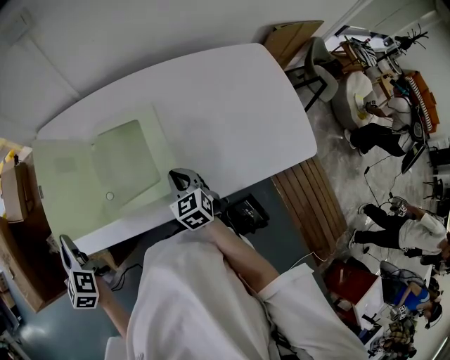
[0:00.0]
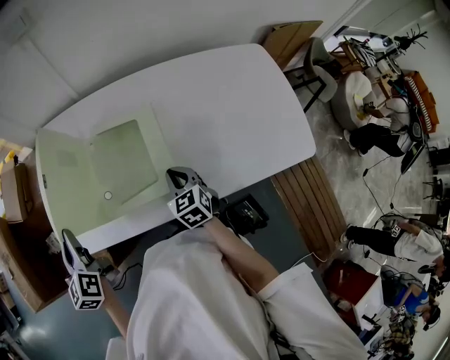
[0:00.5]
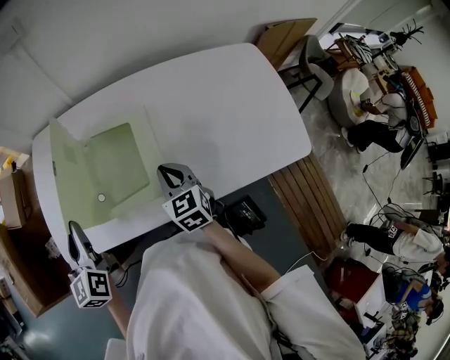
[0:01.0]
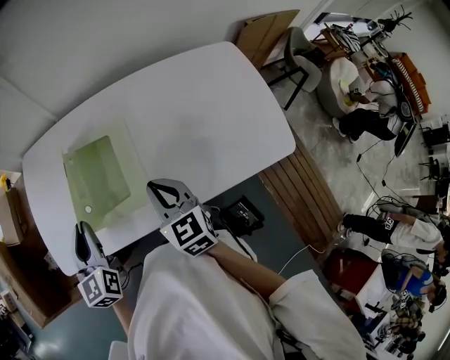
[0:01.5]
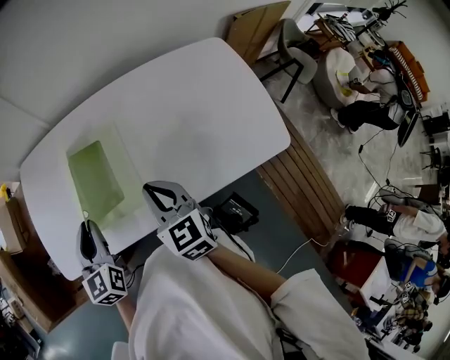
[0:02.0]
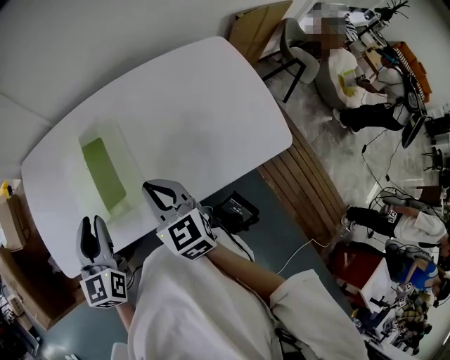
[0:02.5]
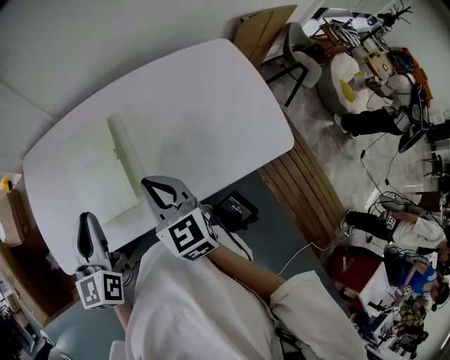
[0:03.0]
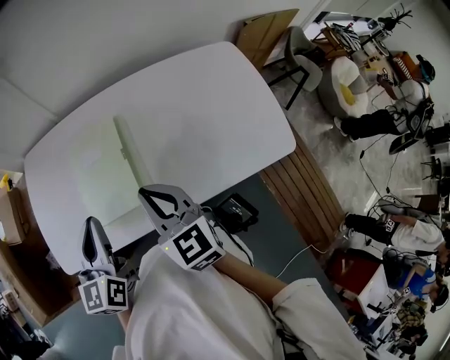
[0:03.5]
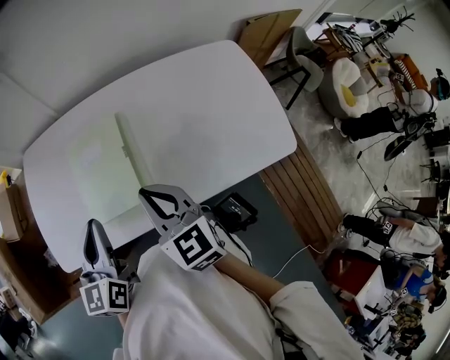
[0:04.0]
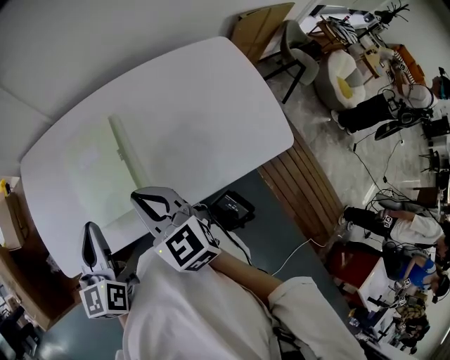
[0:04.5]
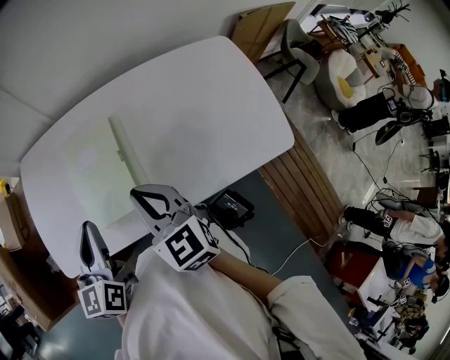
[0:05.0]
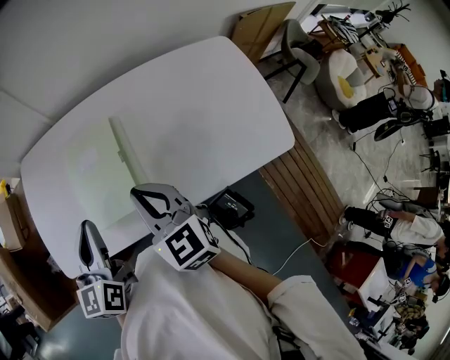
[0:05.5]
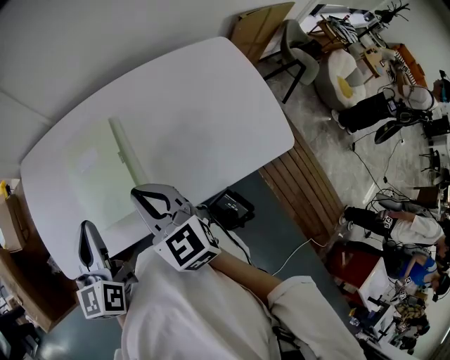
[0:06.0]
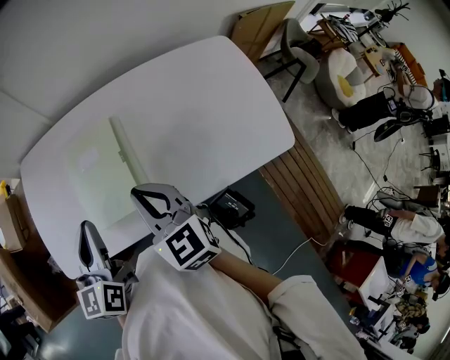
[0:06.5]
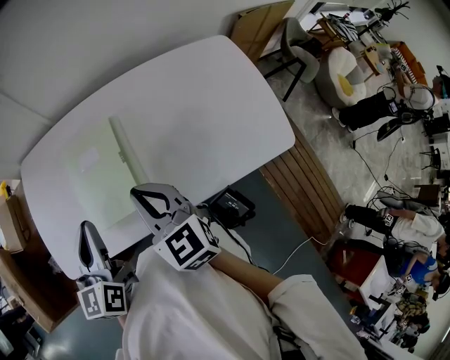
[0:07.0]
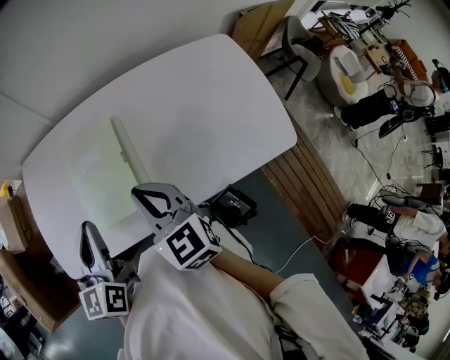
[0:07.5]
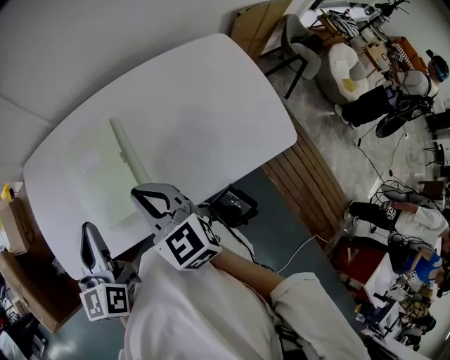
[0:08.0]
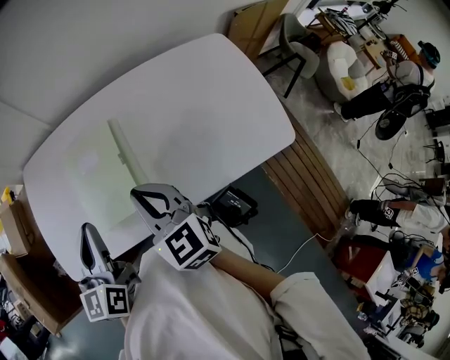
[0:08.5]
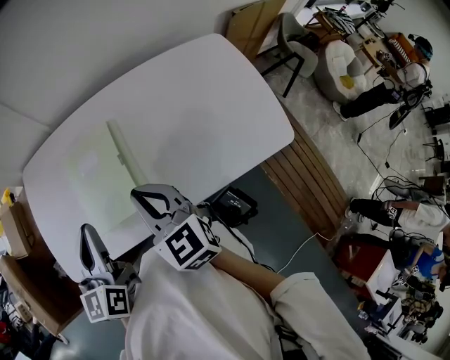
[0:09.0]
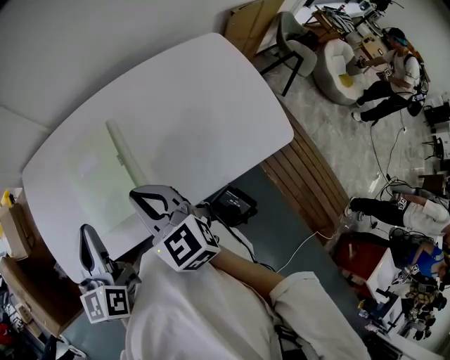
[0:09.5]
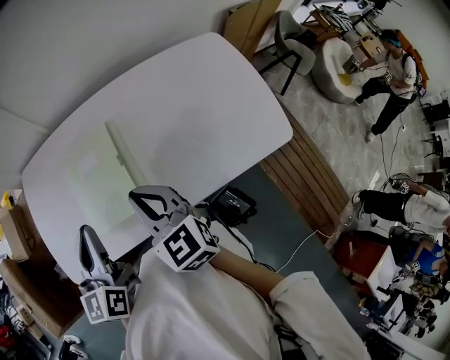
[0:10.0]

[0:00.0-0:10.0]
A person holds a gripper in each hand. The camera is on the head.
0:00.0 to 0:02.0: The left gripper travels to the right by some 20 cm, and rotates some 30 degrees; the right gripper is displaced upward by some 15 cm.
0:02.0 to 0:04.0: Both grippers move upward, some 5 cm.
0:04.0 to 0:06.0: There are only small adjustments of the grippers.
0:06.0 to 0:10.0: The two grippers keep their place.

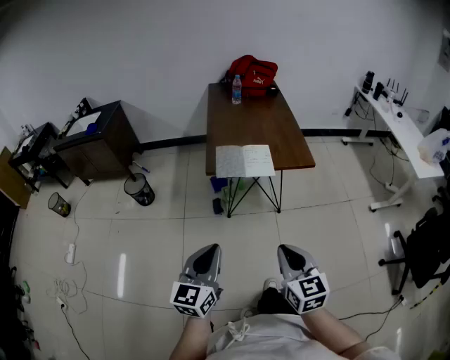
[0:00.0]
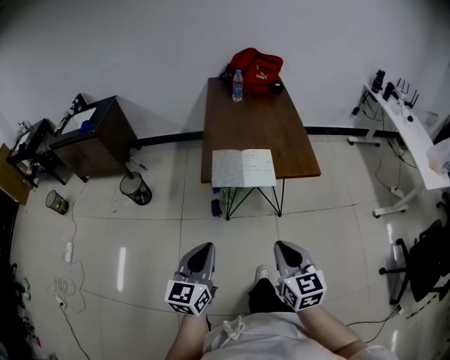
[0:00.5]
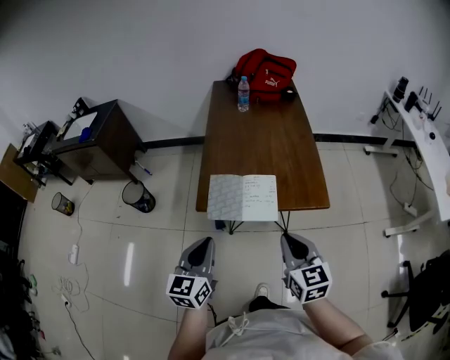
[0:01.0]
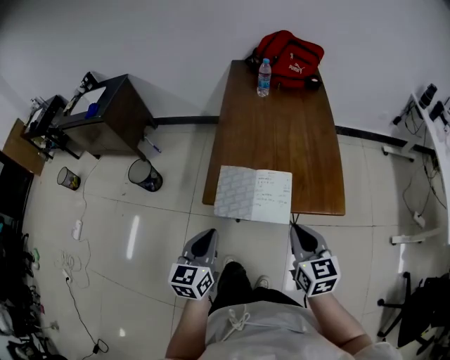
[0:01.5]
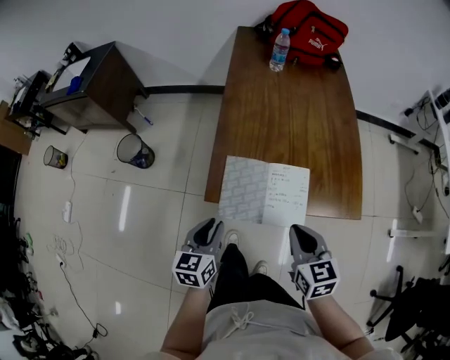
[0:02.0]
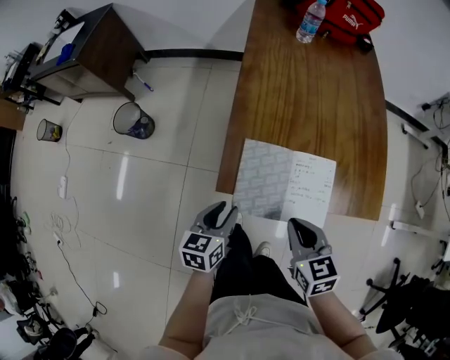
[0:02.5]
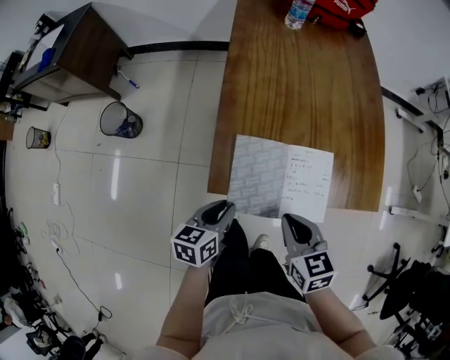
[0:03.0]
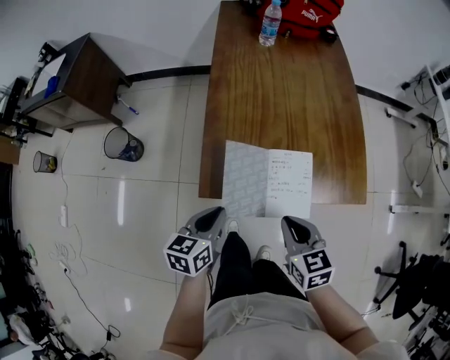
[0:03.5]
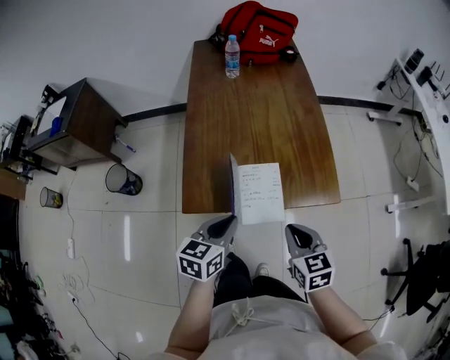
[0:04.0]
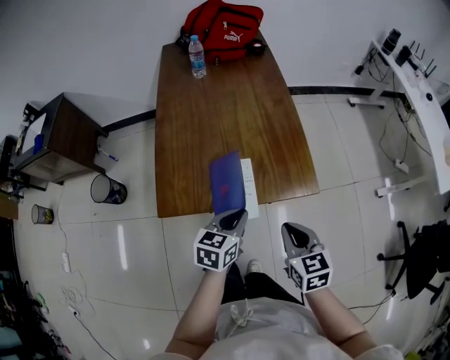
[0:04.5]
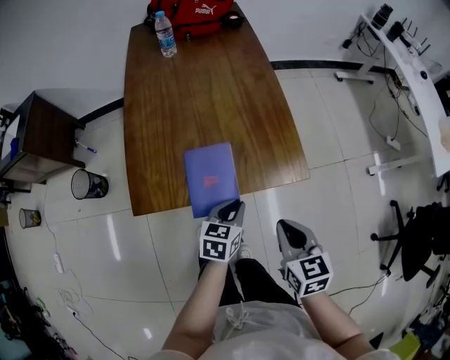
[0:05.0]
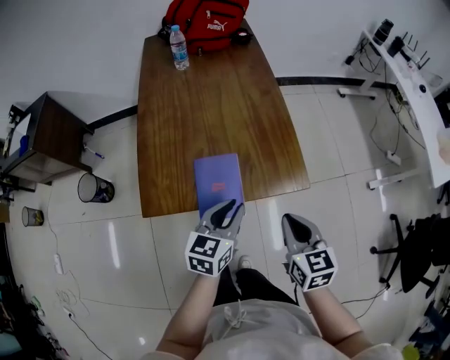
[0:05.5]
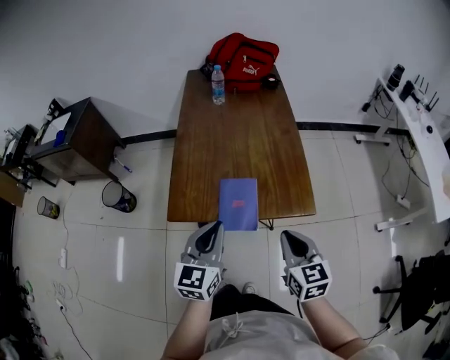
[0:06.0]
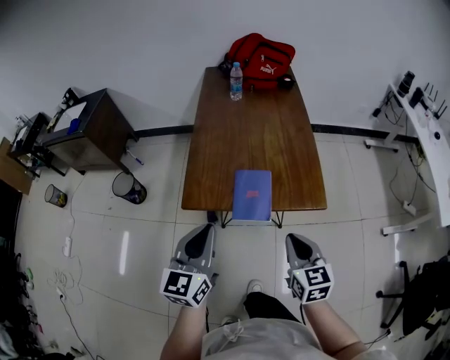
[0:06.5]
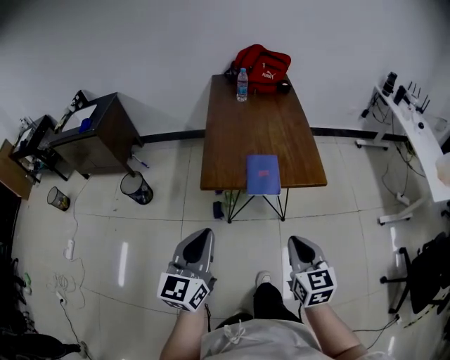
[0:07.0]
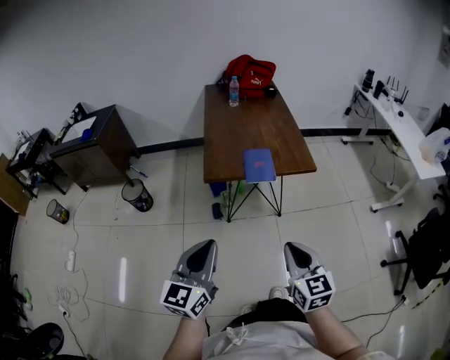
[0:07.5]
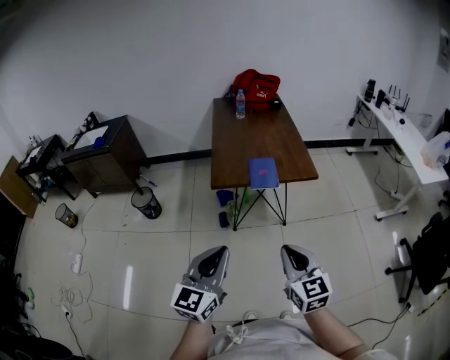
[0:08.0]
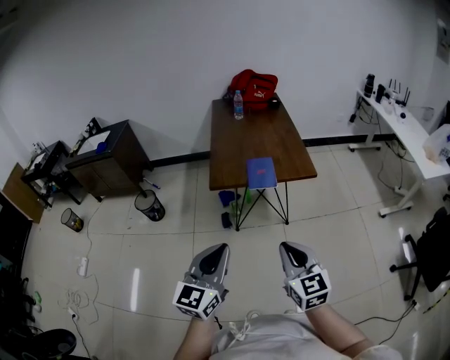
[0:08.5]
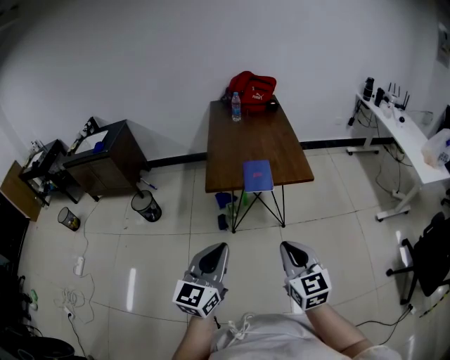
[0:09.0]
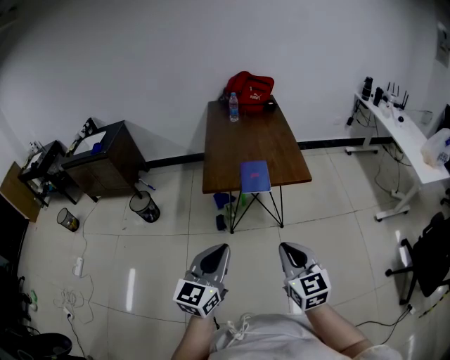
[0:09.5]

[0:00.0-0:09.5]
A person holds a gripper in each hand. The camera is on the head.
0:00.0 to 0:02.0: The left gripper travels forward and downward by roughly 40 cm, and turns by approximately 30 degrees, while the right gripper moves forward, roughly 40 cm.
0:02.0 to 0:04.0: The left gripper goes approximately 15 cm to the right, and changes its angle by approximately 20 degrees. Meanwhile the right gripper shifts about 5 cm to the right.
0:04.0 to 0:05.5: The two grippers go some 10 cm to the right.
0:05.5 to 0:07.5: The left gripper moves backward, to the left and upward, approximately 50 cm, and changes its angle by approximately 30 degrees. Meanwhile the right gripper is displaced backward and to the left by about 40 cm.
0:07.5 to 0:09.5: The left gripper moves to the right, roughly 10 cm.

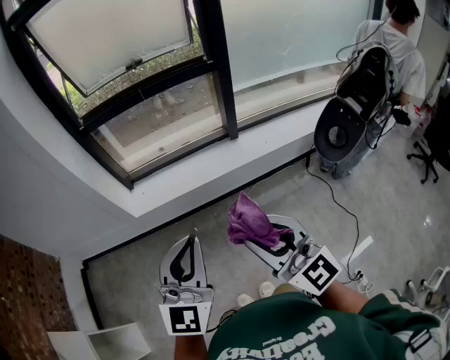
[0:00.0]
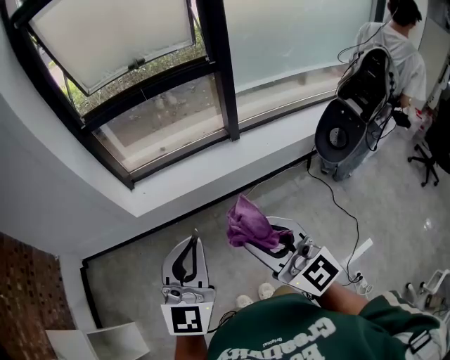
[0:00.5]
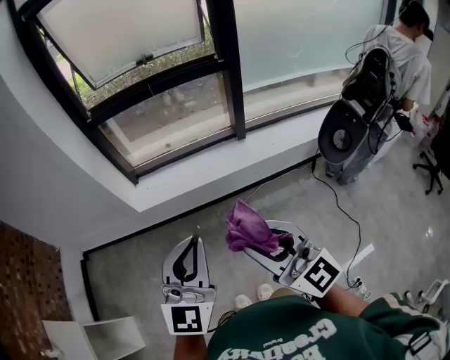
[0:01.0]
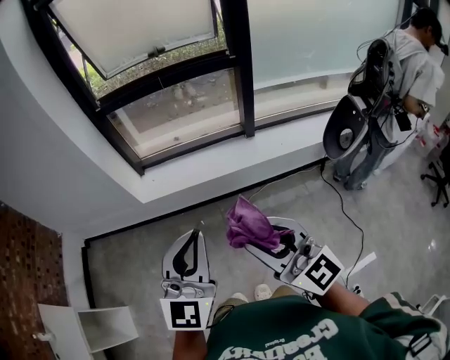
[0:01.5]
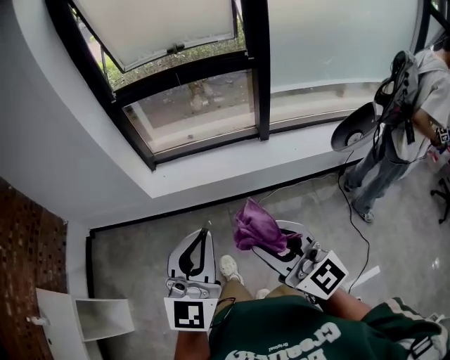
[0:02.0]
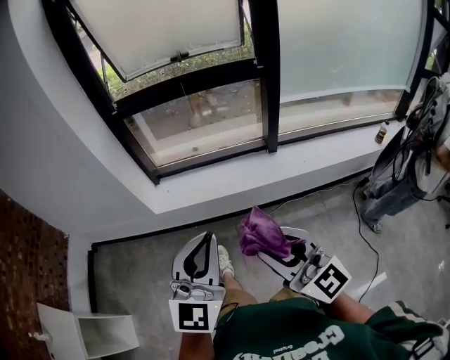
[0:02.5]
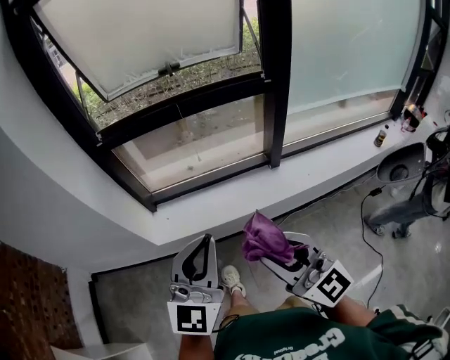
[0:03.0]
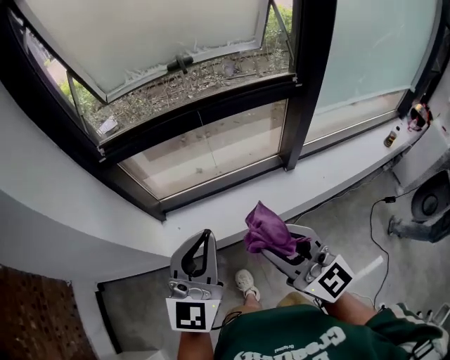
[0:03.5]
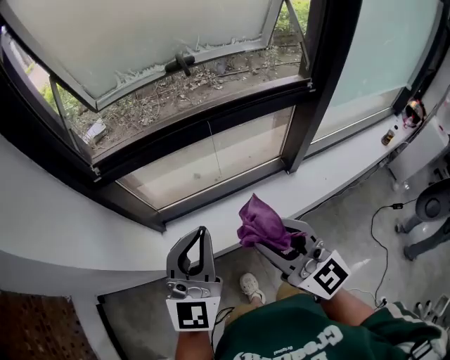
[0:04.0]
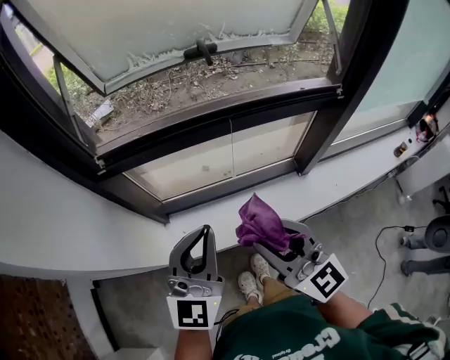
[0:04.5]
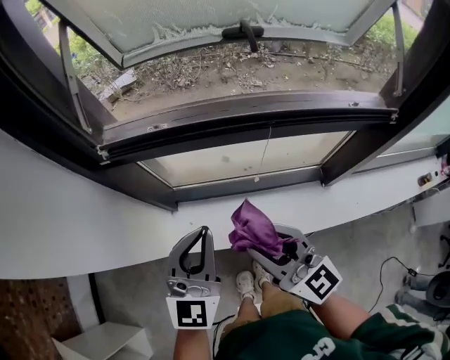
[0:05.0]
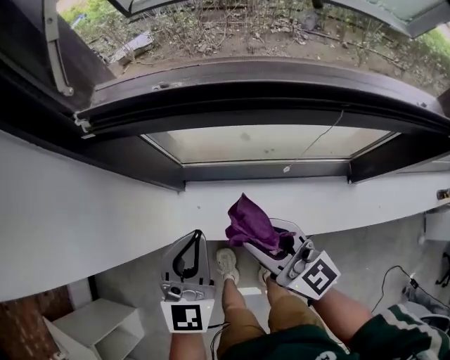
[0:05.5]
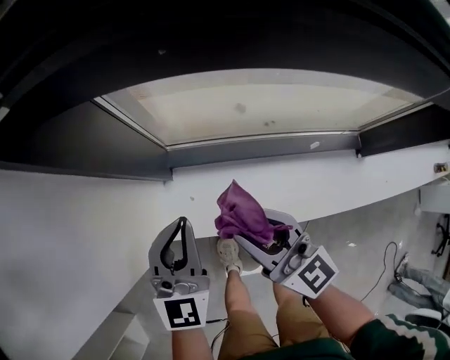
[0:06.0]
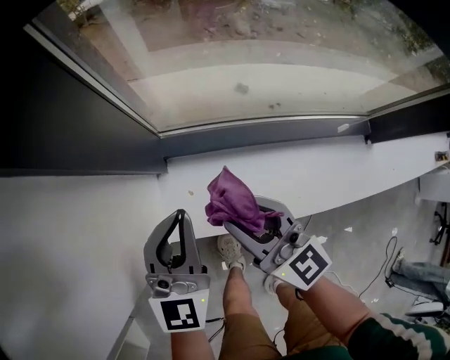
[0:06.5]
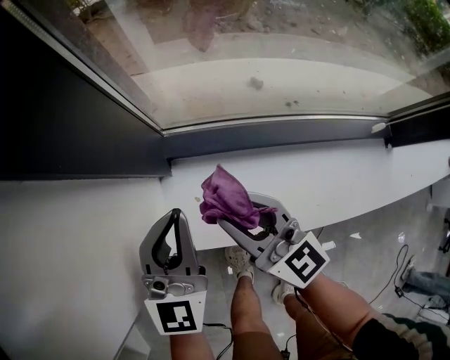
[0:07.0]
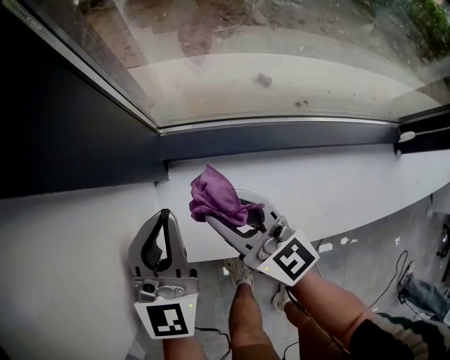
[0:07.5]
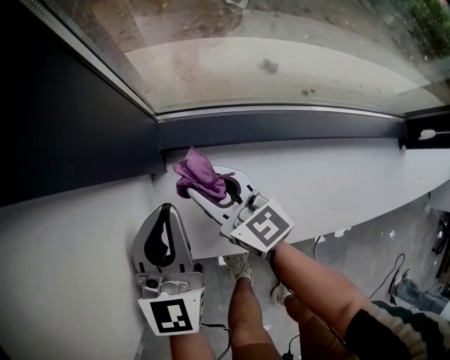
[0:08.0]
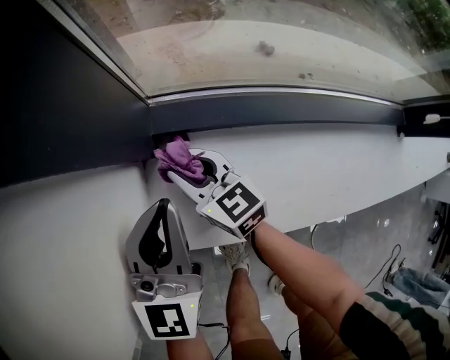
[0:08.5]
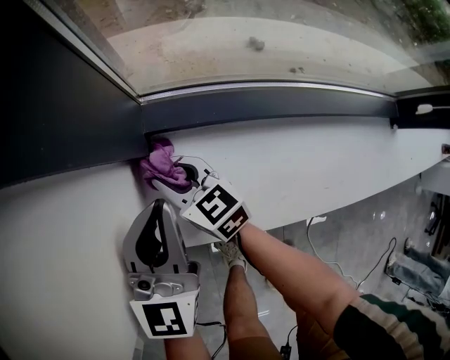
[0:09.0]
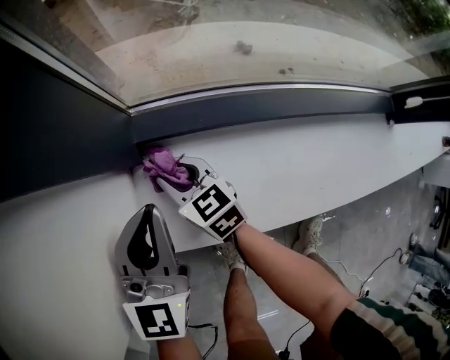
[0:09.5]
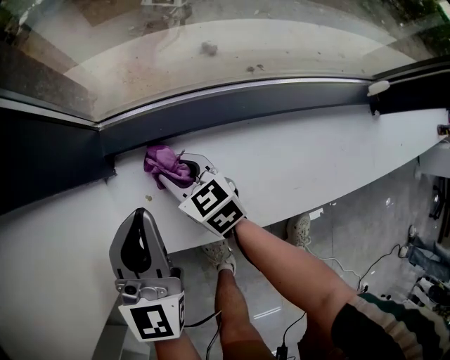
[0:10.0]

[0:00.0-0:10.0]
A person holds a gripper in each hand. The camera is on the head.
0:00.0 to 0:02.0: The grippers stay close to where they were, moving slightly.
0:02.0 to 0:04.0: The pair of grippers is taken forward, about 50 cm.
0:04.0 to 0:06.0: Both grippers move downward, forward and to the left, roughly 40 cm. The left gripper swivels some 30 degrees; the right gripper changes its angle by approximately 30 degrees.
0:06.0 to 0:08.0: The left gripper is displaced downward by roughly 25 cm. The right gripper heads downward and forward, covering roughly 35 cm.
0:08.0 to 0:10.0: The left gripper moves to the right, approximately 5 cm. The right gripper shifts some 10 cm downward and to the right.
